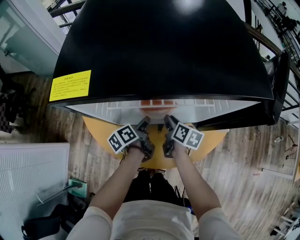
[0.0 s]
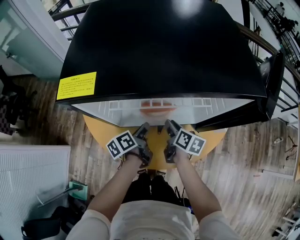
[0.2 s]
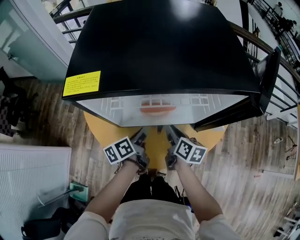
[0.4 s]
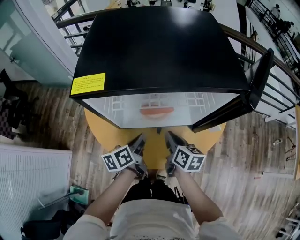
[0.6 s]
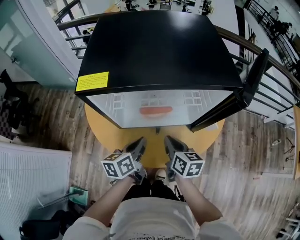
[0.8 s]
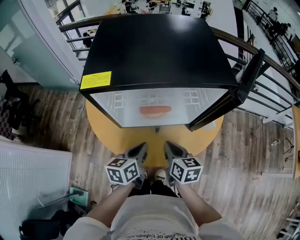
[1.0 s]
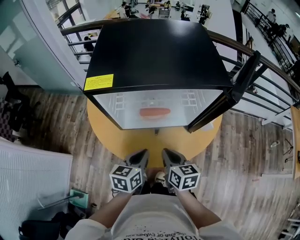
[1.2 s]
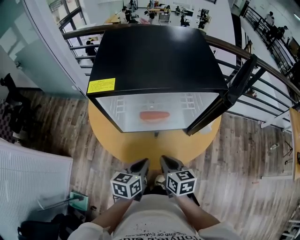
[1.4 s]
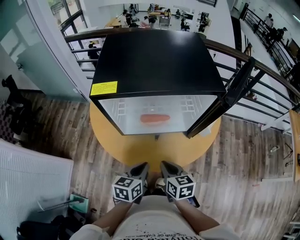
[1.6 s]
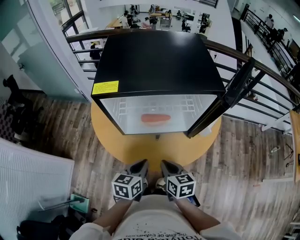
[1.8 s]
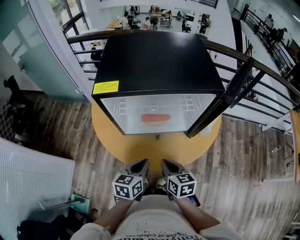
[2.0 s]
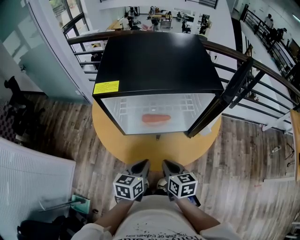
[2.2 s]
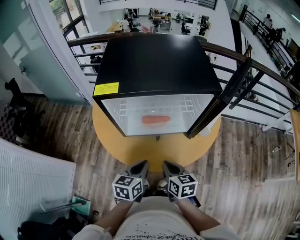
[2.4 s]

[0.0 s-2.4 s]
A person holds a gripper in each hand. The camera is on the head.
0.0 to 1.2 s: The right gripper shifts by about 20 cm, rotates approximately 30 degrees, and closes up.

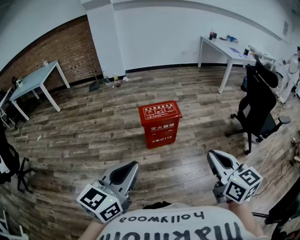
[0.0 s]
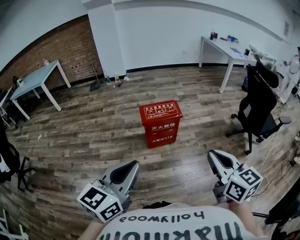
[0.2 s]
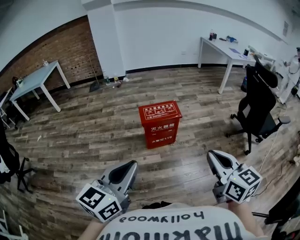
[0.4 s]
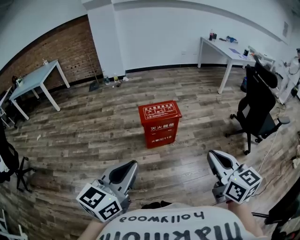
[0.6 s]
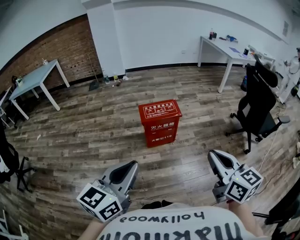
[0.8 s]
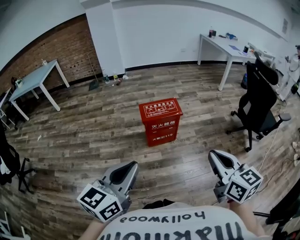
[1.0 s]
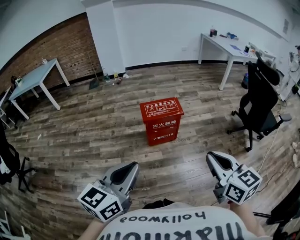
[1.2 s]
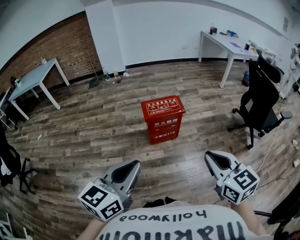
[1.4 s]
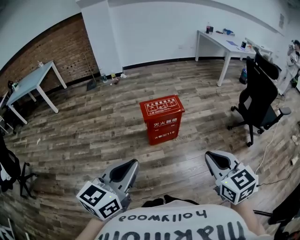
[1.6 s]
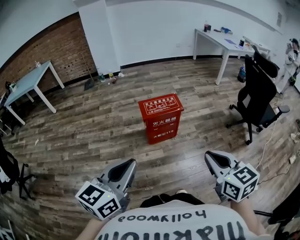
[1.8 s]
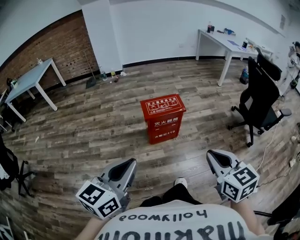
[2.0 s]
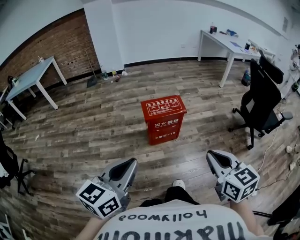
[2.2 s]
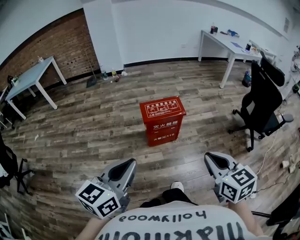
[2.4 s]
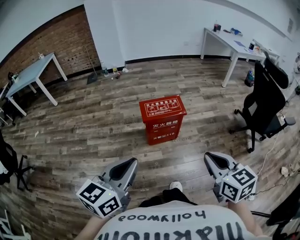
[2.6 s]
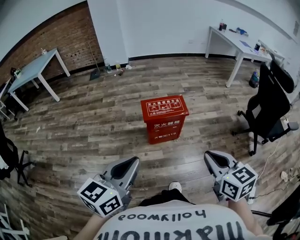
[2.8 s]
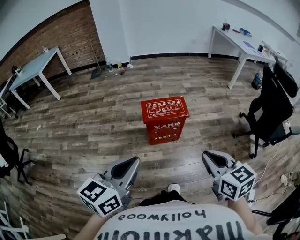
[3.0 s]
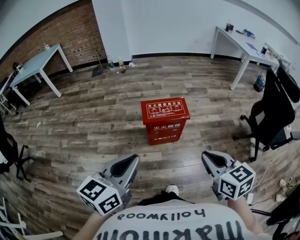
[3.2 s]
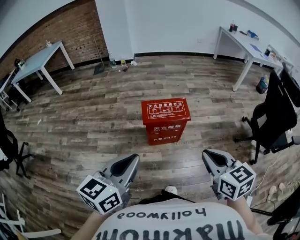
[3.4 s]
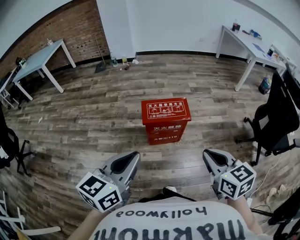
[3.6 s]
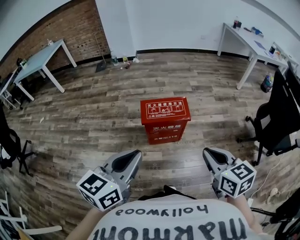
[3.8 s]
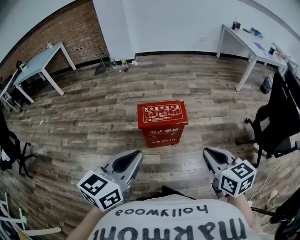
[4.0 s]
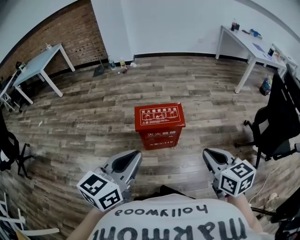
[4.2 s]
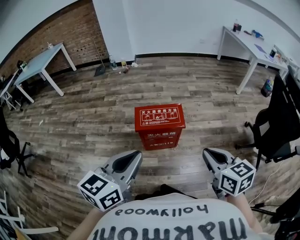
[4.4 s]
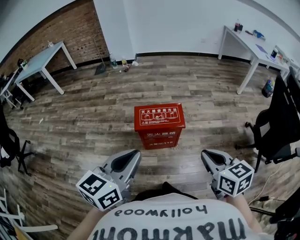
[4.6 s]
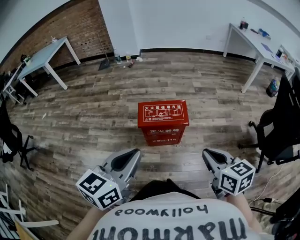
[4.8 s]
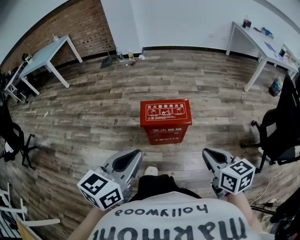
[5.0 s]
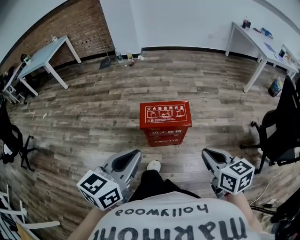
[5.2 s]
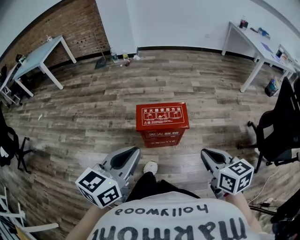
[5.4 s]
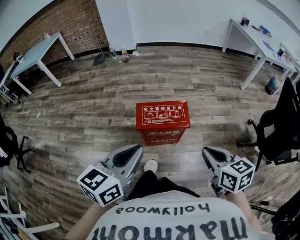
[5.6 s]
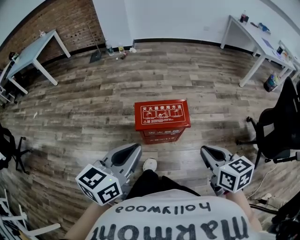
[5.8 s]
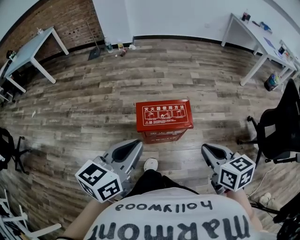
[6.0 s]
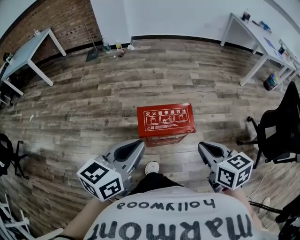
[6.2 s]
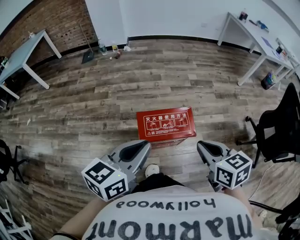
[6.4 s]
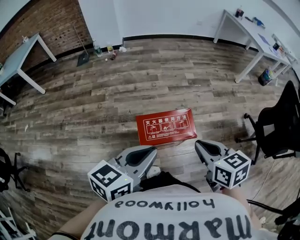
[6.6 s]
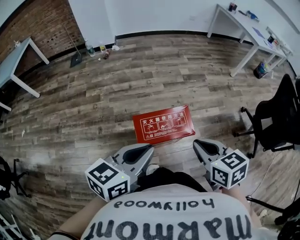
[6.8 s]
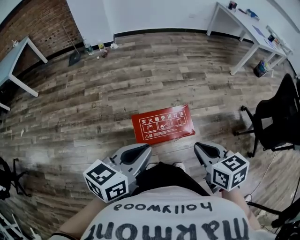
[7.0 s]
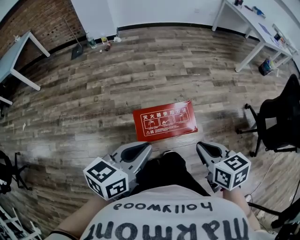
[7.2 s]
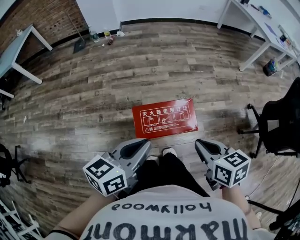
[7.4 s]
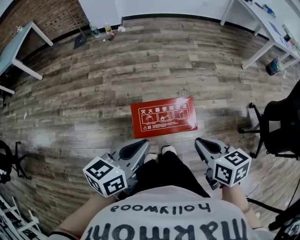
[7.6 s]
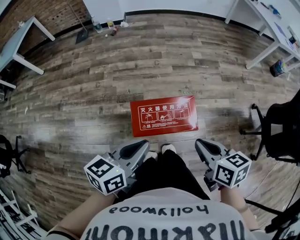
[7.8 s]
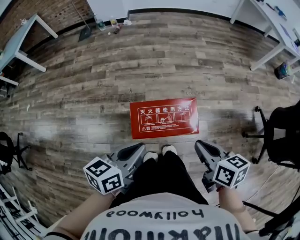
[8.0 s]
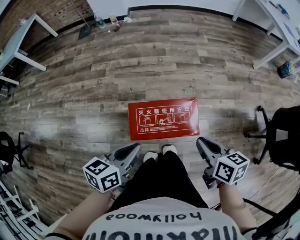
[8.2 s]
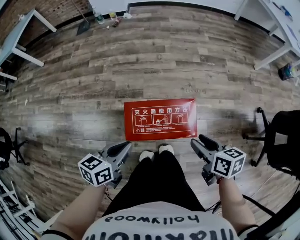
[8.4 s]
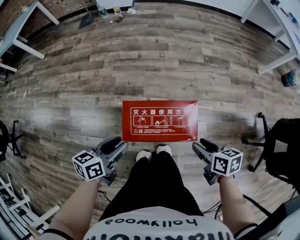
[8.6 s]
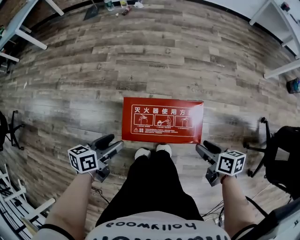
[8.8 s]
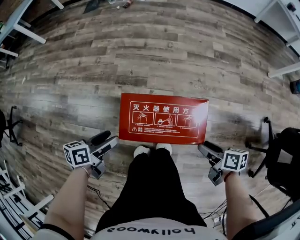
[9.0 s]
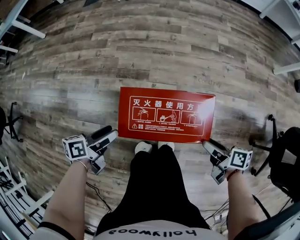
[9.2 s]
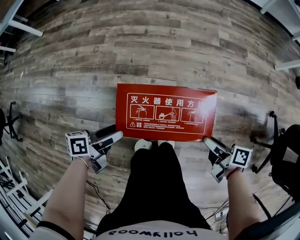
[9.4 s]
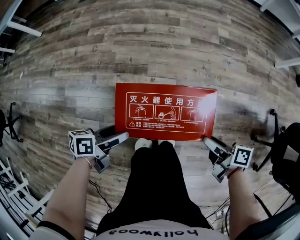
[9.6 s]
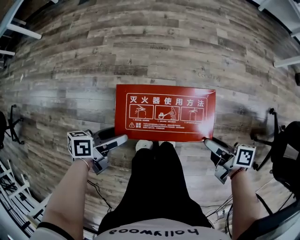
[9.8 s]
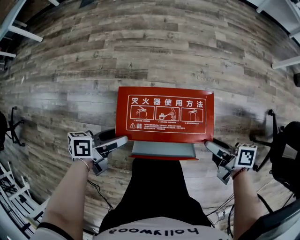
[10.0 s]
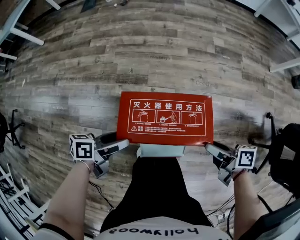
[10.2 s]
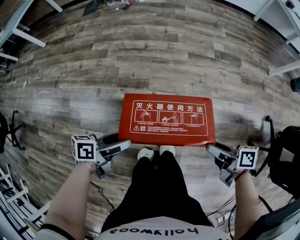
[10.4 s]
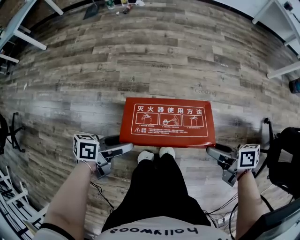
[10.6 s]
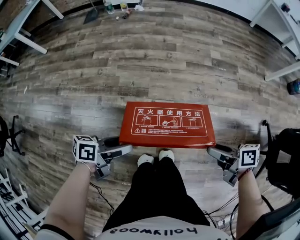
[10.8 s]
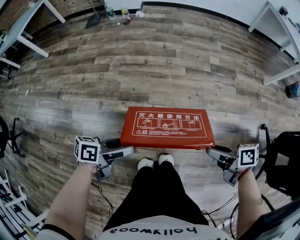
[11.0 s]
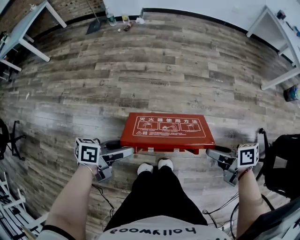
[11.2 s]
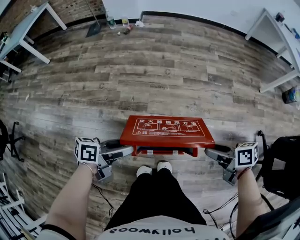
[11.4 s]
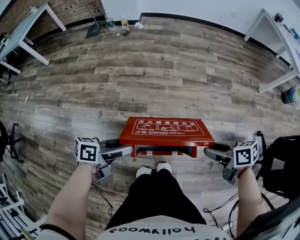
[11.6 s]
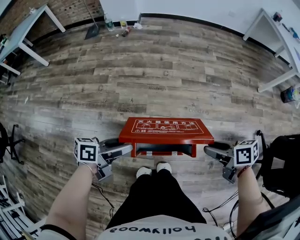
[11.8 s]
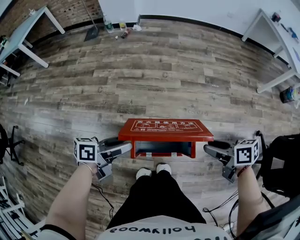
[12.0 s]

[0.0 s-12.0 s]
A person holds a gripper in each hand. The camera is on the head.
0.0 to 1.6 s: The right gripper moves roughly 5 cm, while the left gripper moves roughly 5 cm.
1.6 to 3.0 s: Both grippers move forward, roughly 15 cm.
3.0 to 4.4 s: The two grippers go some 15 cm forward and to the right.
4.4 to 6.0 s: The left gripper heads forward, covering some 15 cm. The right gripper travels forward and to the left by some 15 cm.
6.0 to 7.6 s: Both grippers move forward and downward, about 15 cm.
7.6 to 9.0 s: The right gripper travels downward and to the right by approximately 30 cm, turns by roughly 30 degrees, and opens up. The left gripper moves downward, about 25 cm, changes its angle by about 30 degrees, and opens.
9.0 to 10.4 s: The left gripper ends up approximately 5 cm from where it was. Meanwhile the right gripper goes about 5 cm upward.
10.4 to 12.0 s: The grippers both shift upward by roughly 10 cm. The right gripper swivels approximately 20 degrees.

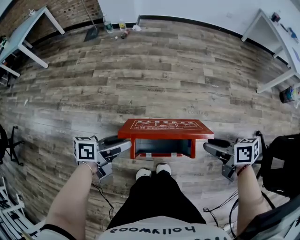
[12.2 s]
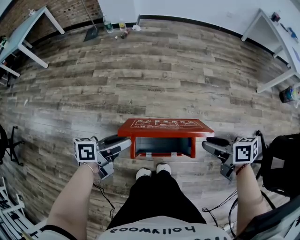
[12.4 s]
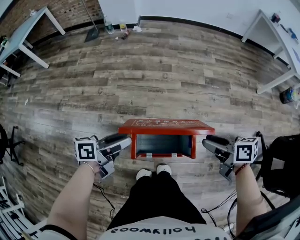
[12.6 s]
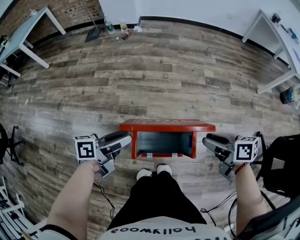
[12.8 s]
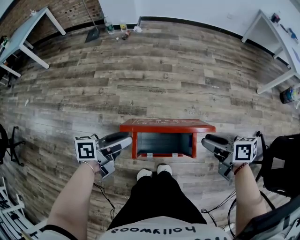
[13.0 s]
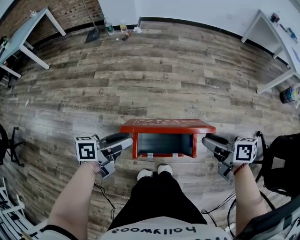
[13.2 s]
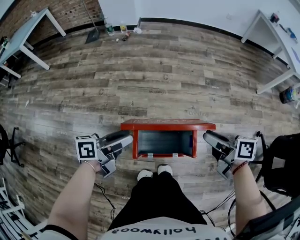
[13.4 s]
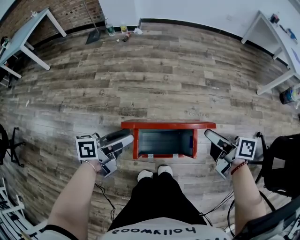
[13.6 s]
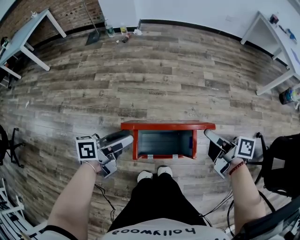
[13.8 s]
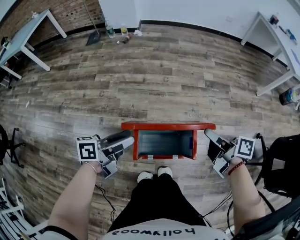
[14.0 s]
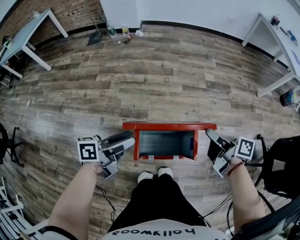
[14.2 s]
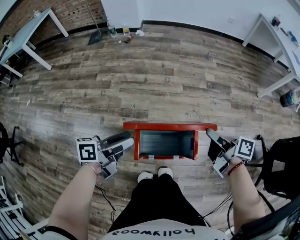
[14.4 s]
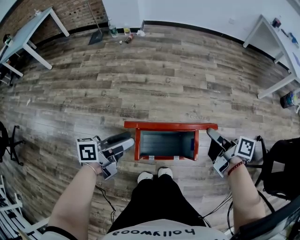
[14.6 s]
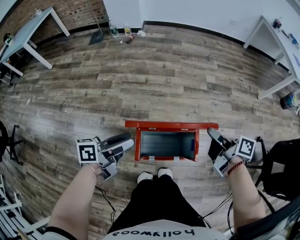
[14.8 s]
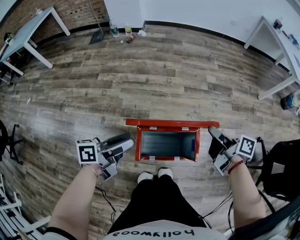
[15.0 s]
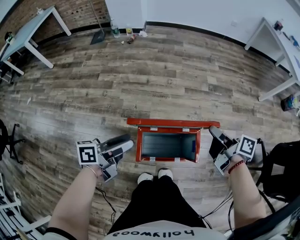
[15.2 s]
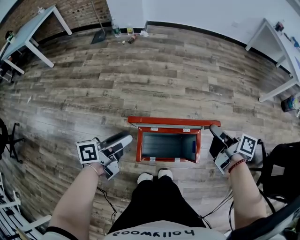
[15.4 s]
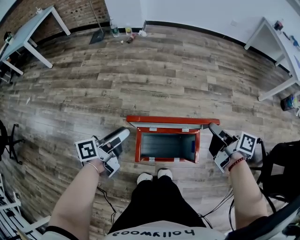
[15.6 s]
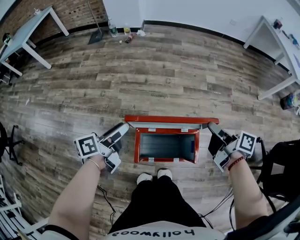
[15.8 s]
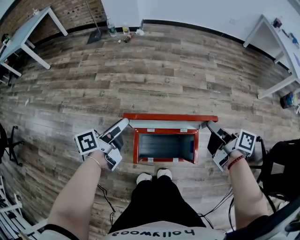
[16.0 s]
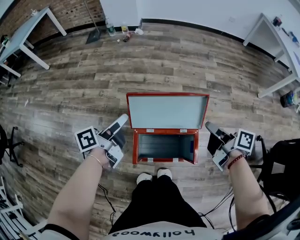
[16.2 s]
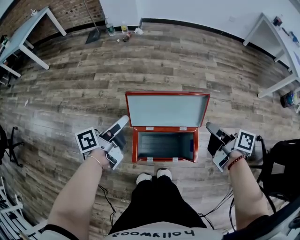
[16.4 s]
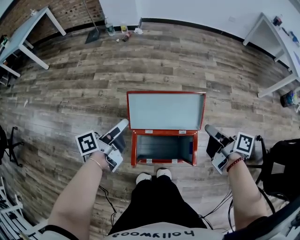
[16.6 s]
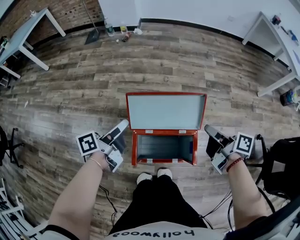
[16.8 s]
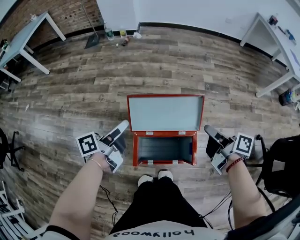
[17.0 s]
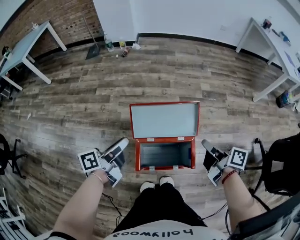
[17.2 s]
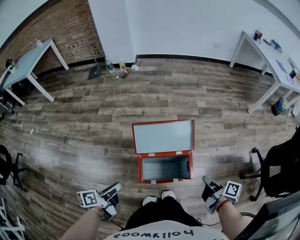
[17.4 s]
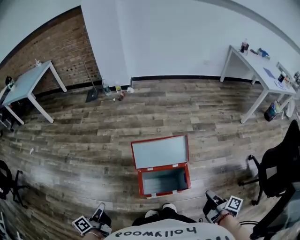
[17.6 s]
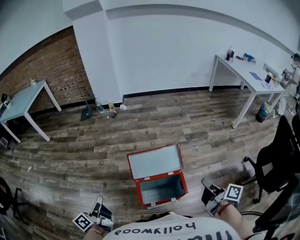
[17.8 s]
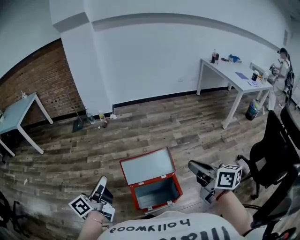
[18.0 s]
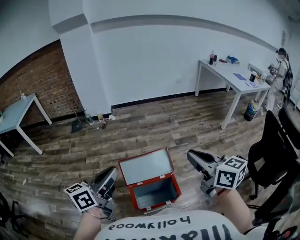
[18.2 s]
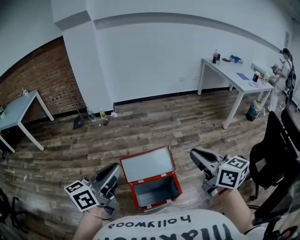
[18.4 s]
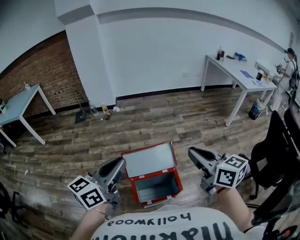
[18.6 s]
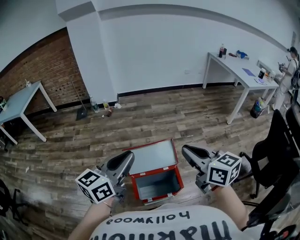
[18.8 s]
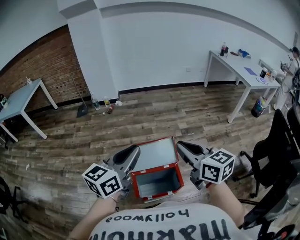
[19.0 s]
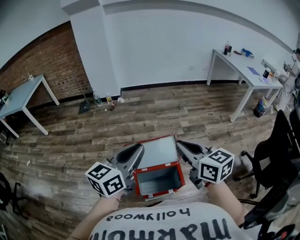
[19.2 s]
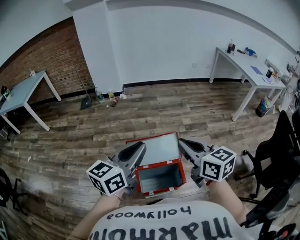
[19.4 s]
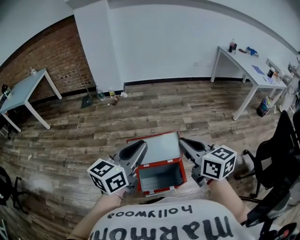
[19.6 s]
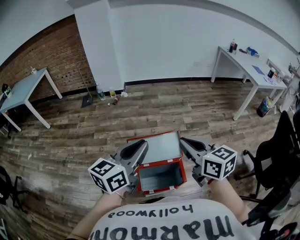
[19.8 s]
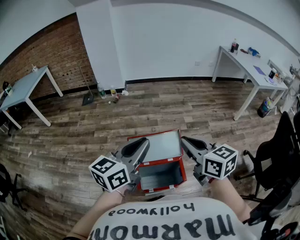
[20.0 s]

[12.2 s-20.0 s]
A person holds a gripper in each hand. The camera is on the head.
12.2 to 13.8 s: The right gripper ends up roughly 5 cm from where it was, and swivels about 30 degrees.
13.8 to 15.4 s: The right gripper closes up.
15.4 to 16.8 s: The left gripper moves forward, about 5 cm.
16.8 to 18.4 s: The two grippers go approximately 35 cm upward. The left gripper rolls clockwise, seen from behind, by some 40 degrees, and closes its fingers. Meanwhile the right gripper rolls counterclockwise, seen from behind, by some 50 degrees.
18.4 to 20.0 s: The left gripper heads to the right, covering some 5 cm; the right gripper goes about 5 cm to the left.

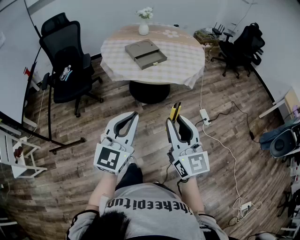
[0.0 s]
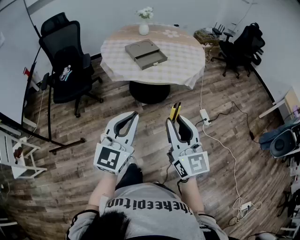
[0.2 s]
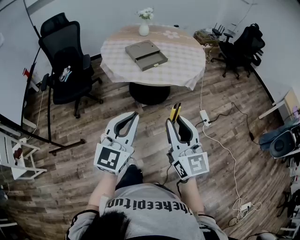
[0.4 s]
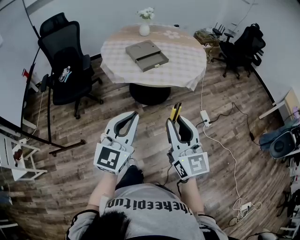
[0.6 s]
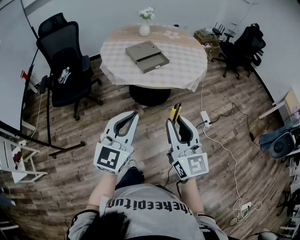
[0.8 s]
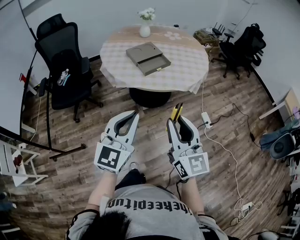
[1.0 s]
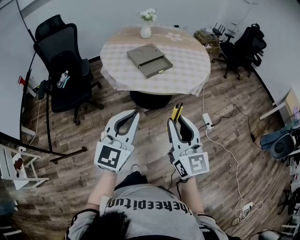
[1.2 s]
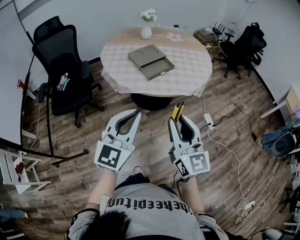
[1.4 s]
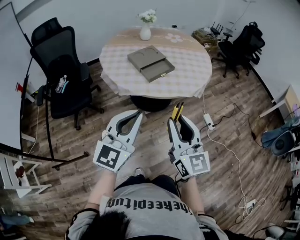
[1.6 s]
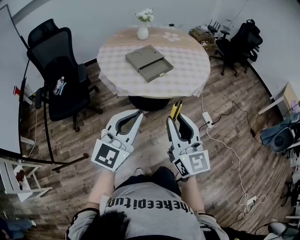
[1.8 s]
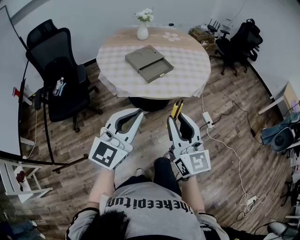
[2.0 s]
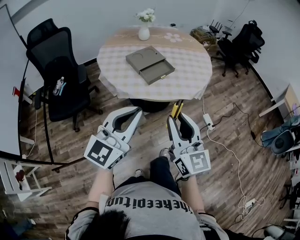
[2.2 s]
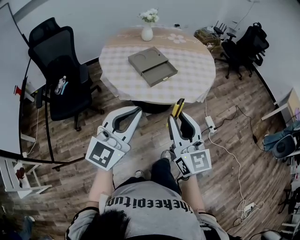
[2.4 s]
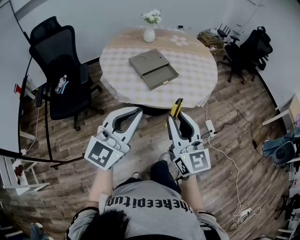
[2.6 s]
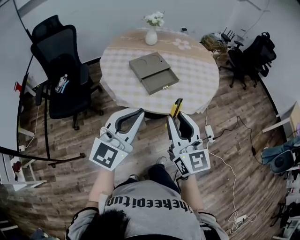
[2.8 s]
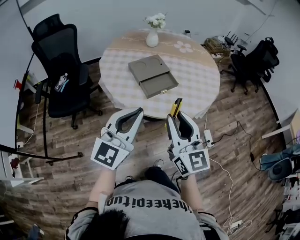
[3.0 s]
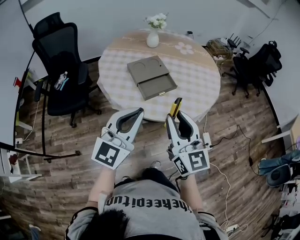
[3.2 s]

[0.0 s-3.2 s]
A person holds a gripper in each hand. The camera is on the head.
0.0 to 1.6 s: The grippers both shift forward and to the left by approximately 15 cm.
1.6 to 3.2 s: Both grippers move forward, roughly 15 cm.
